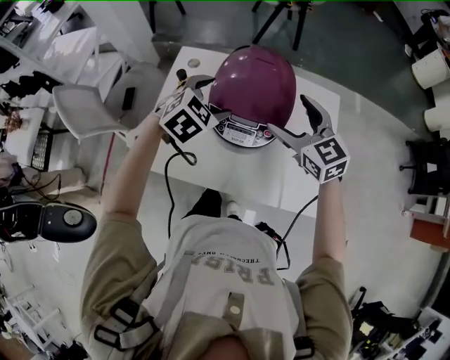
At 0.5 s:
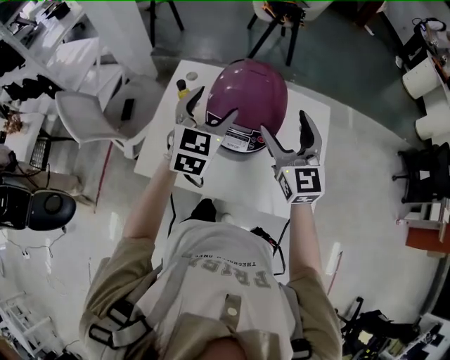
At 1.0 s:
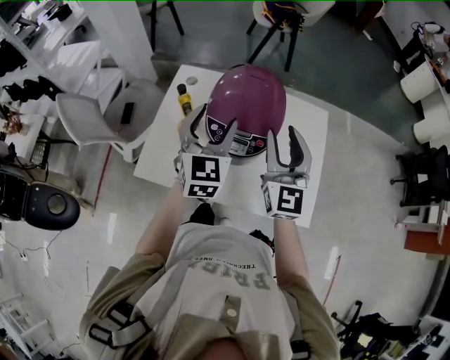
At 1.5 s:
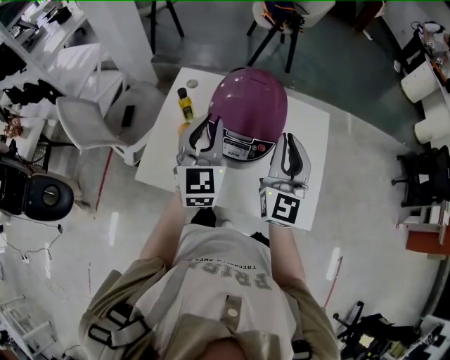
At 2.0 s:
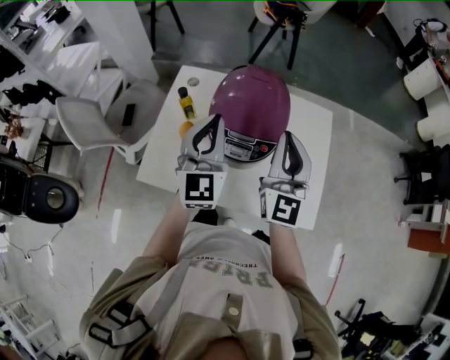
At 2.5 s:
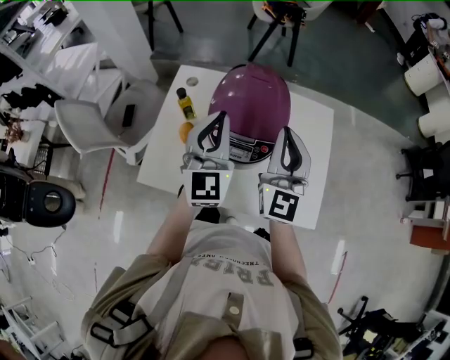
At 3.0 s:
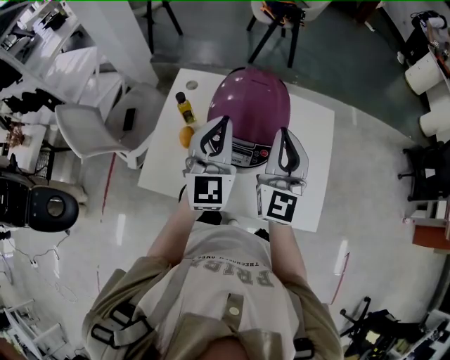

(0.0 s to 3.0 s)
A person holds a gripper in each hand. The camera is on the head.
0.0 s - 1.5 s: The two grippers go about 10 cm upward and backward. The right gripper turns by approximately 50 degrees, and closes its fingers. The left gripper points its fingers about 40 degrees further upward, and closes its fingers.
1.5 s - 3.0 s: The grippers move only a little.

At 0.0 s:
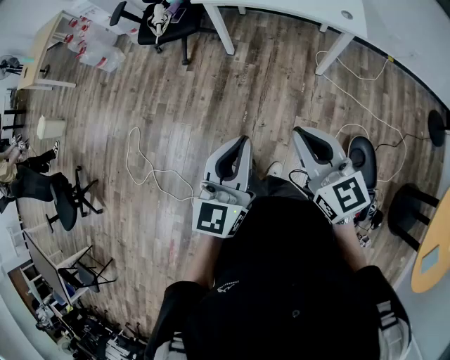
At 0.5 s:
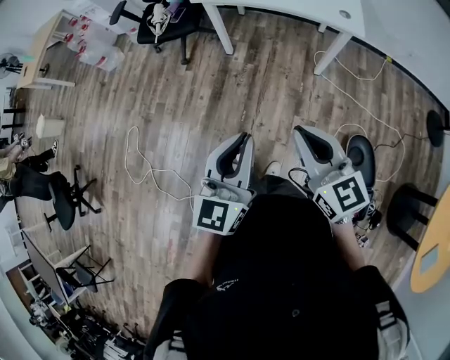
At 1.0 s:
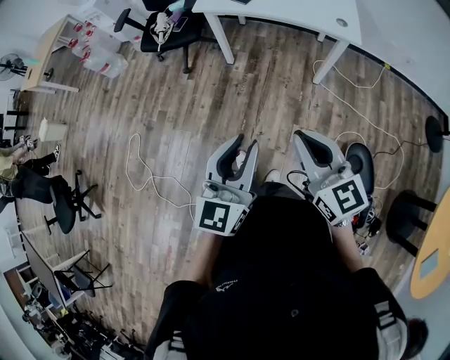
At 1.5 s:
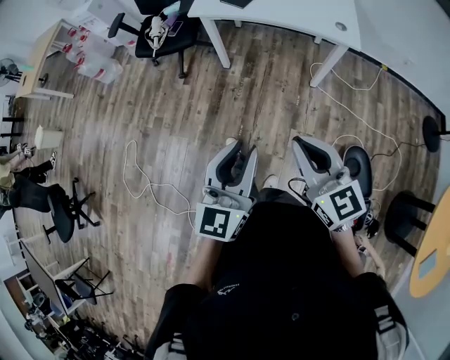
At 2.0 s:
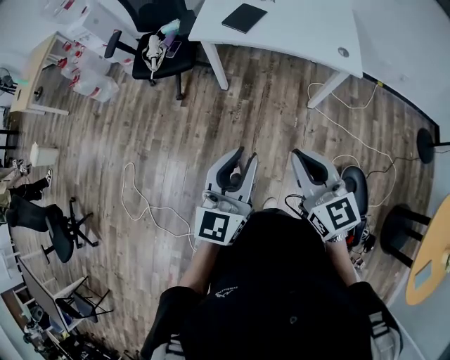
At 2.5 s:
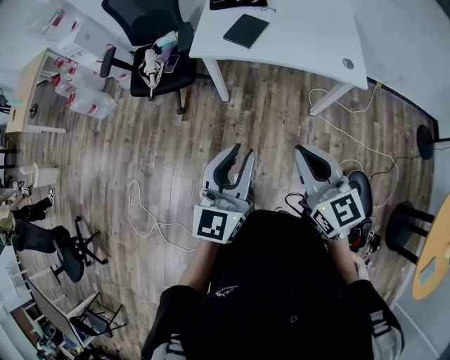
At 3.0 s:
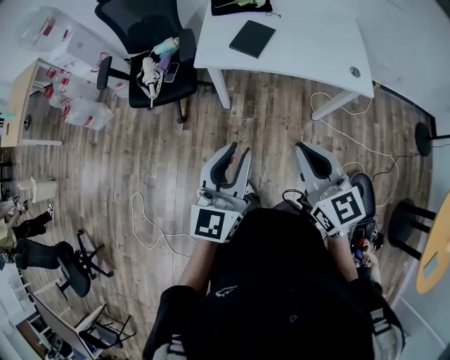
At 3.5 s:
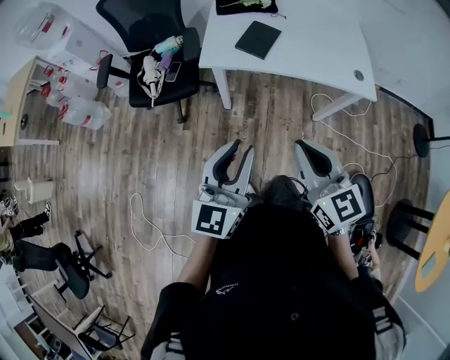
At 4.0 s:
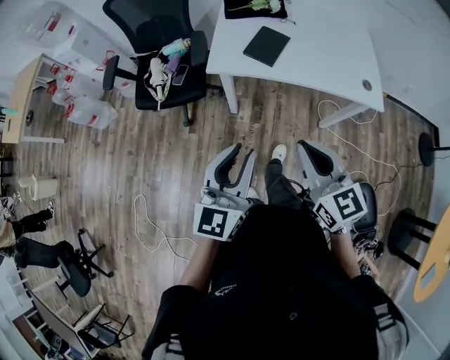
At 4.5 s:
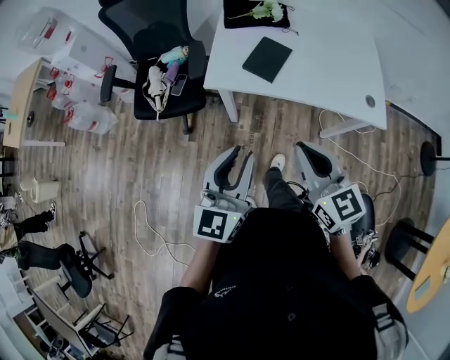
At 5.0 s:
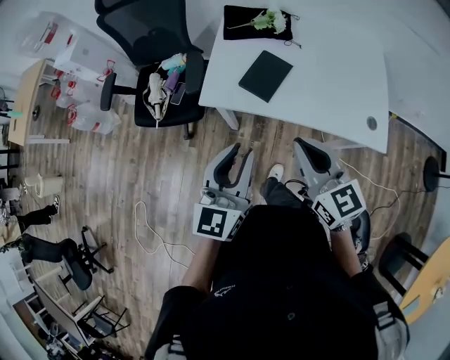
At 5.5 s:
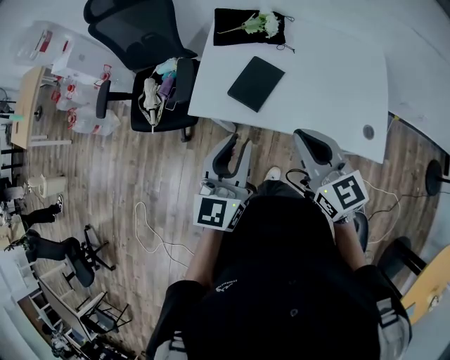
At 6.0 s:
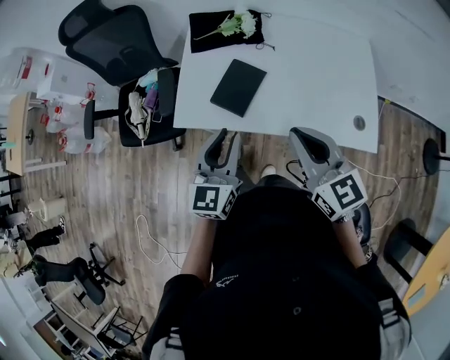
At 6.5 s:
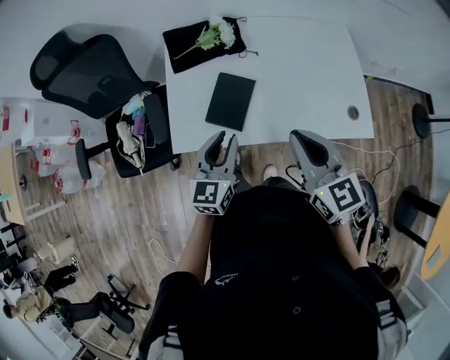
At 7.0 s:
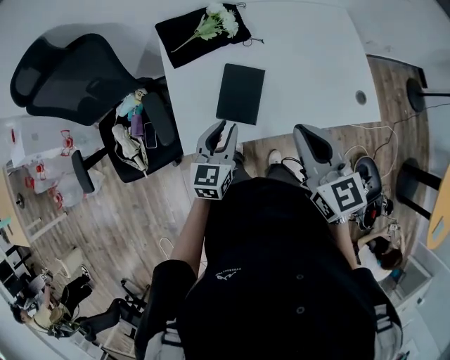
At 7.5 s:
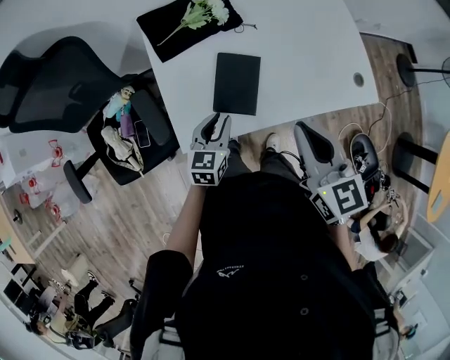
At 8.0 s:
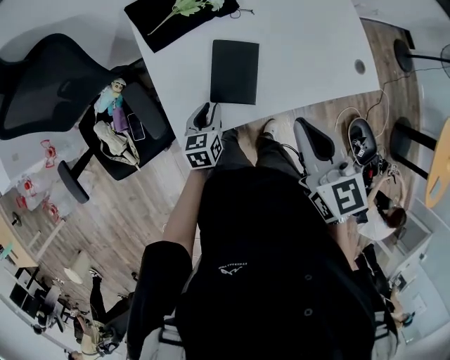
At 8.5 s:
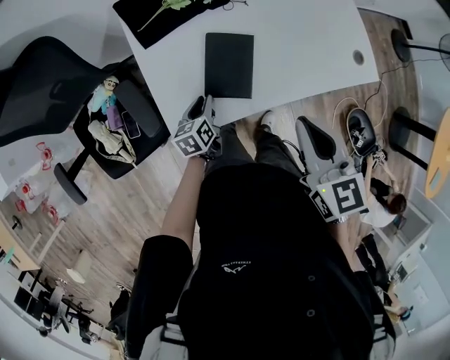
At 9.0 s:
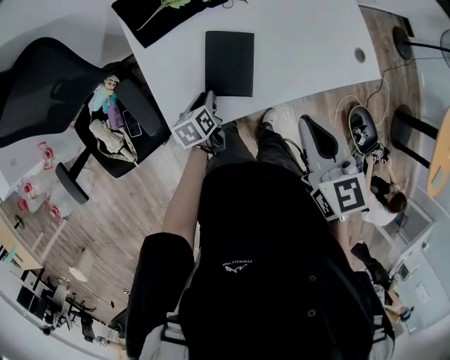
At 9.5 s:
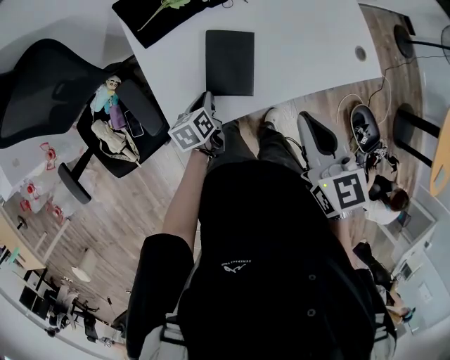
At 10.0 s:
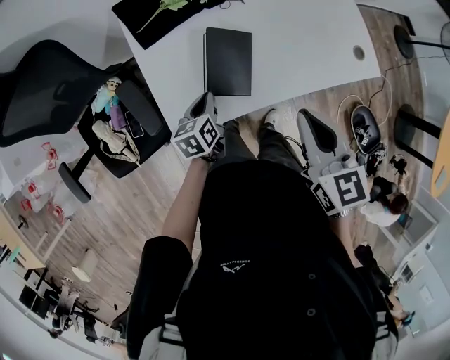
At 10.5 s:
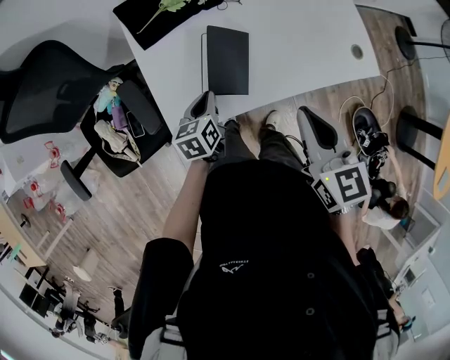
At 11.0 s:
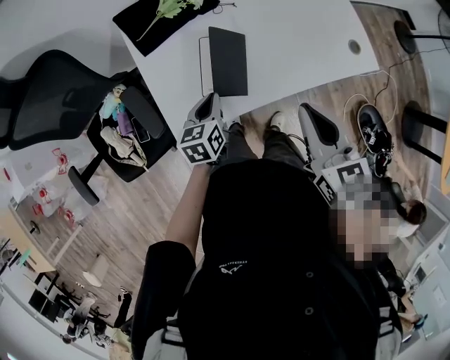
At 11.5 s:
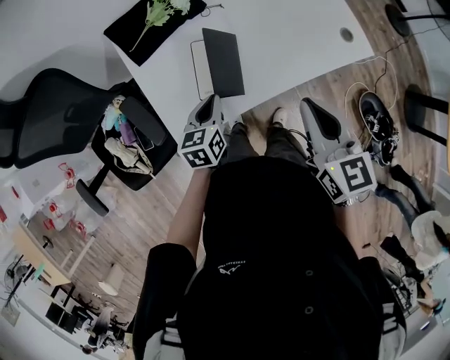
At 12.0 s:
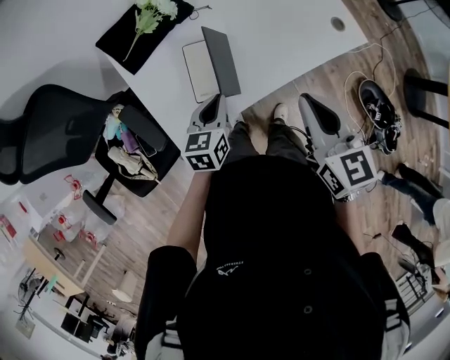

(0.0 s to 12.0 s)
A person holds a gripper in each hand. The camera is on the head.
0.0 s - 2.0 s: Both grippers travel together forward, roughly 15 cm. The left gripper opens.
2.0 s - 4.0 s: Both grippers travel together forward and to the left, some 30 cm.
4.0 s - 6.0 s: Both grippers travel together forward and to the right, some 35 cm.
6.0 s - 8.0 s: The right gripper moves about 15 cm, and changes its angle by roughly 40 degrees; the left gripper is displaced downward by approximately 25 cm, and turns by about 40 degrees.
10.0 s - 12.0 s: The left gripper travels to the right and upward by roughly 10 cm, and swivels about 30 degrees.

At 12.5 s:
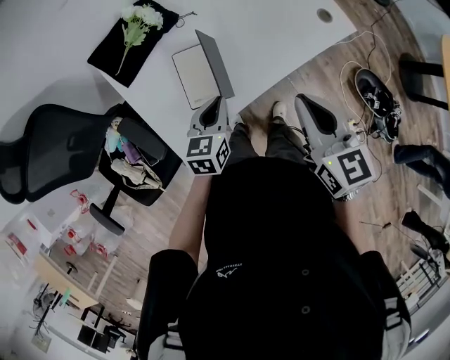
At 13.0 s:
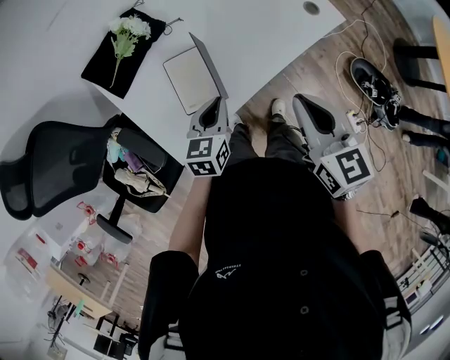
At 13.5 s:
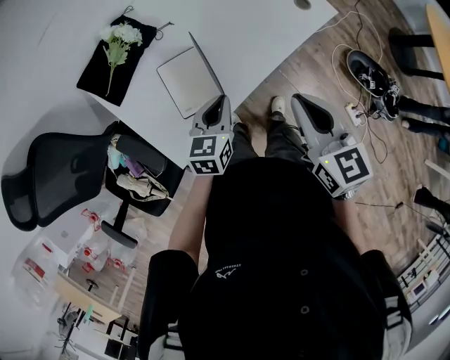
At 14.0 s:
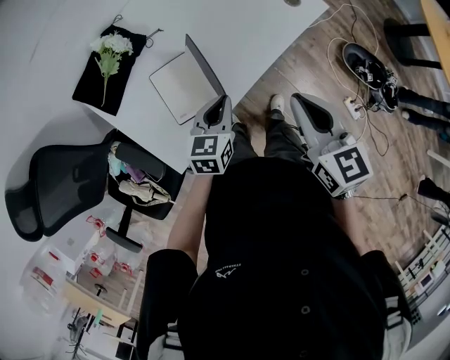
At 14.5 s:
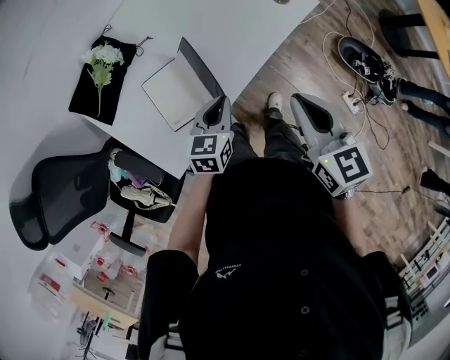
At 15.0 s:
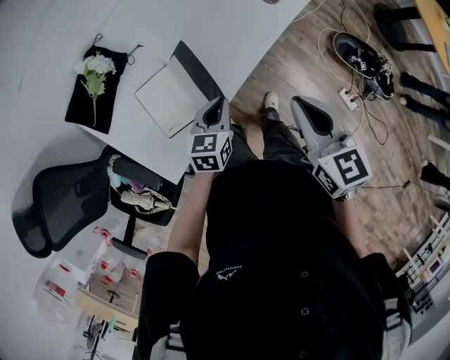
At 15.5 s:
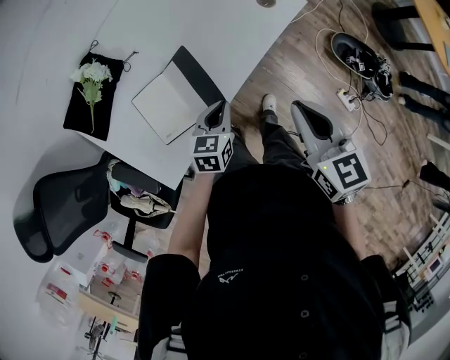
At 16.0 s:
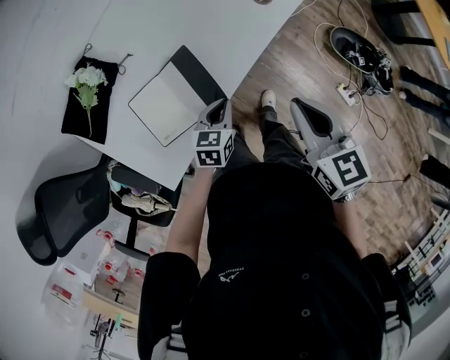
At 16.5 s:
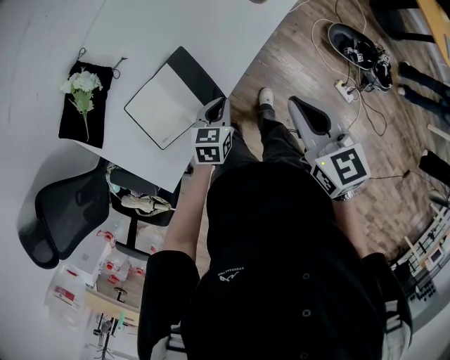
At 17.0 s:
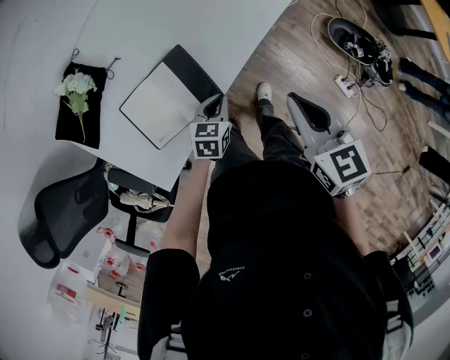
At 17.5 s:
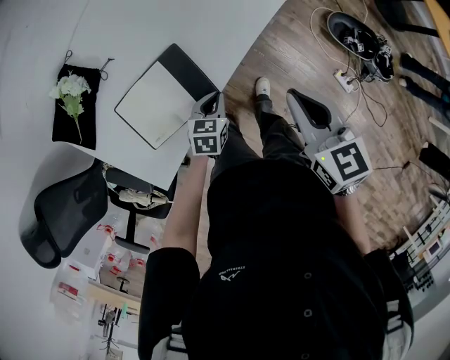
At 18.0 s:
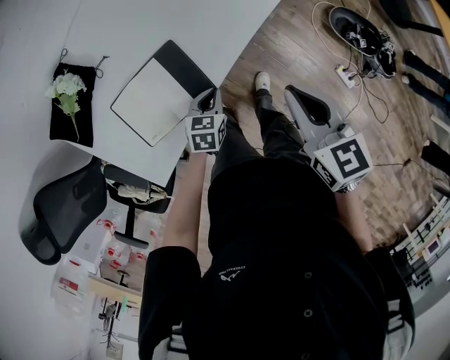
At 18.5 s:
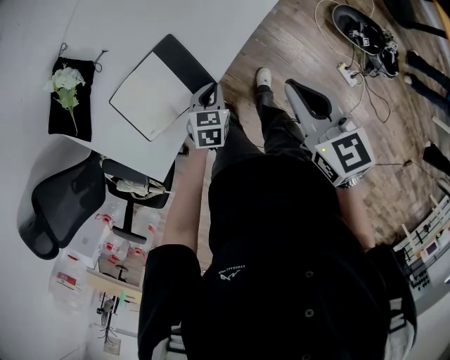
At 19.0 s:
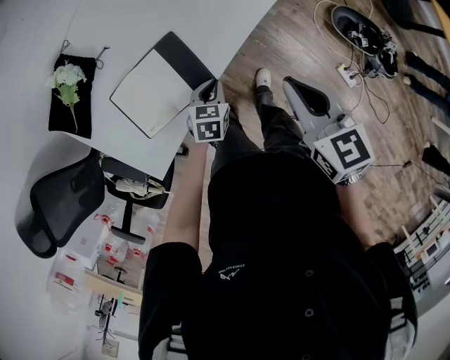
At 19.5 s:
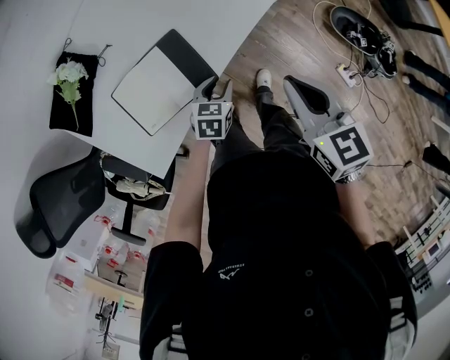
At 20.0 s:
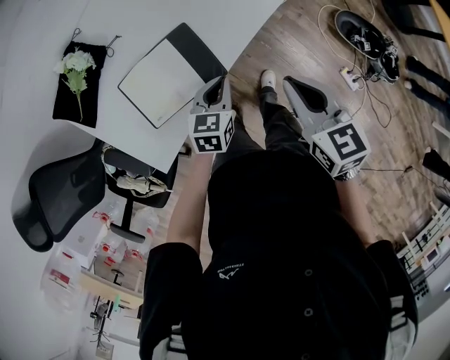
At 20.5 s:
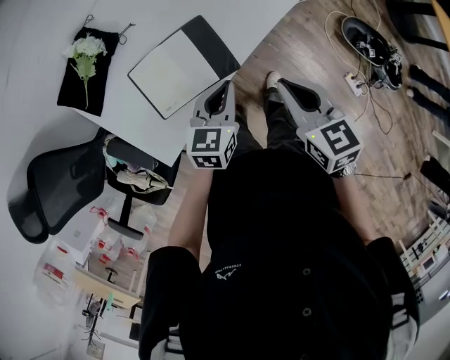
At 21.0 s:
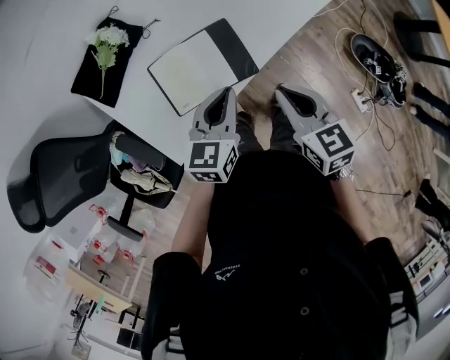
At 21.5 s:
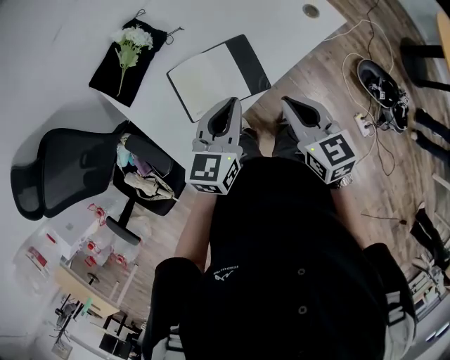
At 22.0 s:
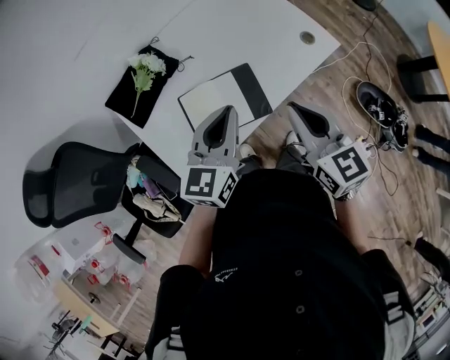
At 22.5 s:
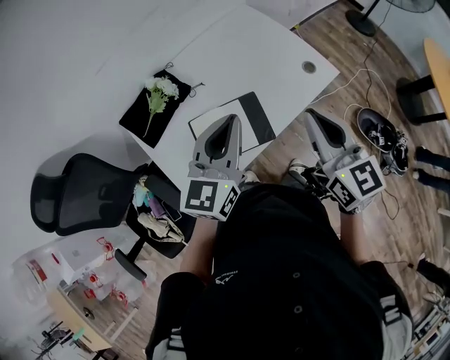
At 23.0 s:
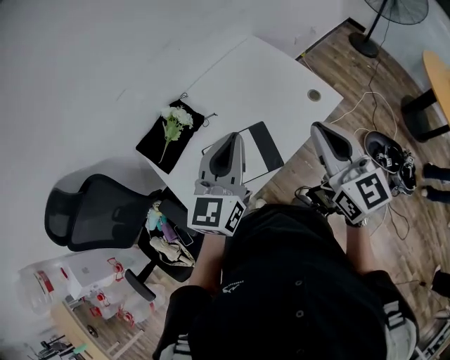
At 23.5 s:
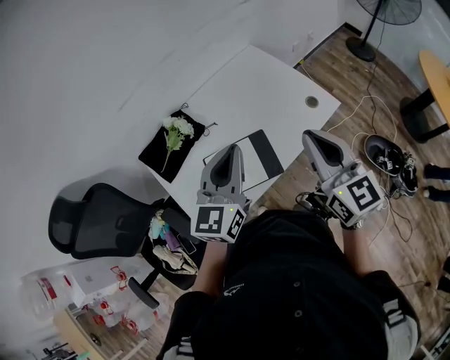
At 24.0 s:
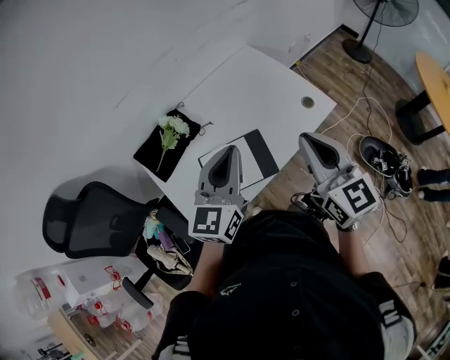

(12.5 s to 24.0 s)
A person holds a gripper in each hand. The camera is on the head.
12.5 s - 14.5 s: The grippers both shift to the right by about 10 cm.
14.5 s - 16.5 s: The right gripper moves to the right, roughly 5 cm. The left gripper travels downward and to the right by about 10 cm.
16.5 s - 18.5 s: The left gripper travels downward by roughly 5 cm, while the right gripper moves approximately 5 cm.
18.5 s - 20.0 s: The right gripper moves some 5 cm. Meanwhile the left gripper travels upward by some 10 cm, and opens, then closes again.
20.0 s - 22.0 s: The left gripper travels upward and to the left by approximately 25 cm, and swivels roughly 30 degrees; the right gripper moves to the left and upward, roughly 15 cm, and rotates roughly 20 degrees.
22.0 s - 24.0 s: The grippers both shift upward by about 10 cm.
